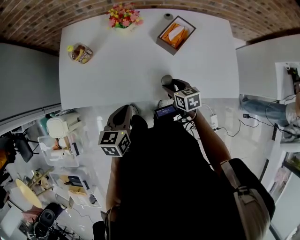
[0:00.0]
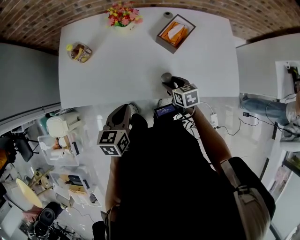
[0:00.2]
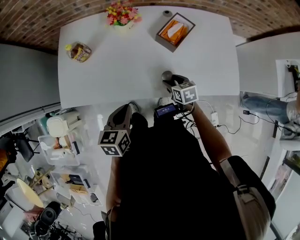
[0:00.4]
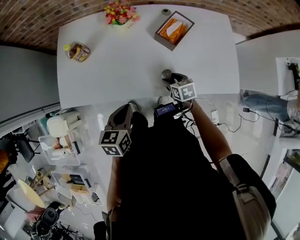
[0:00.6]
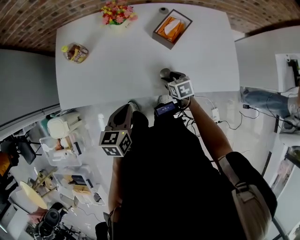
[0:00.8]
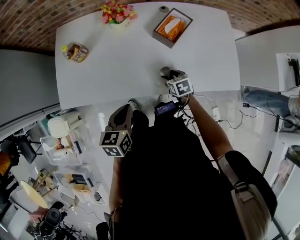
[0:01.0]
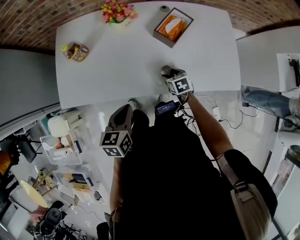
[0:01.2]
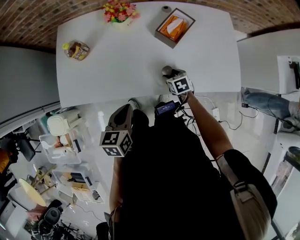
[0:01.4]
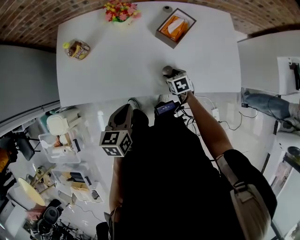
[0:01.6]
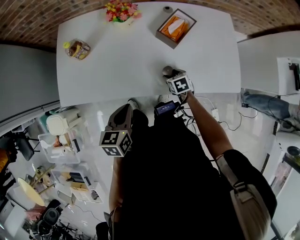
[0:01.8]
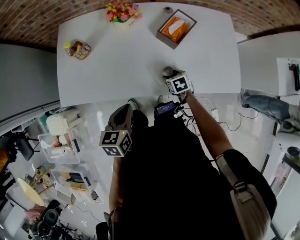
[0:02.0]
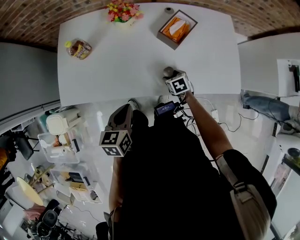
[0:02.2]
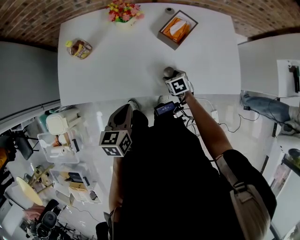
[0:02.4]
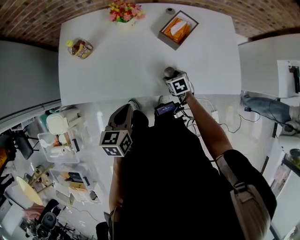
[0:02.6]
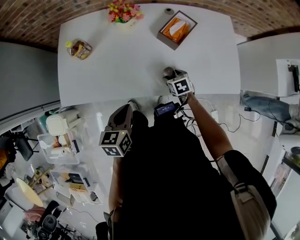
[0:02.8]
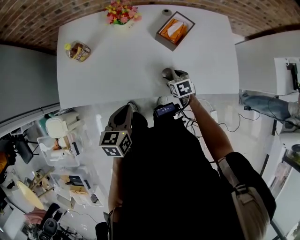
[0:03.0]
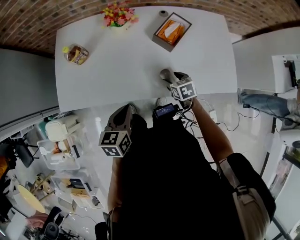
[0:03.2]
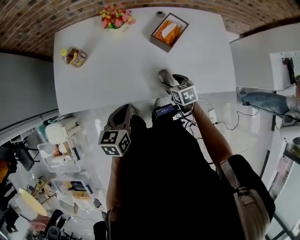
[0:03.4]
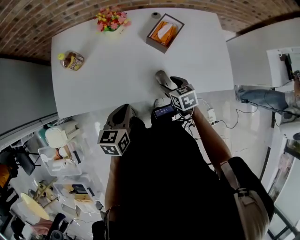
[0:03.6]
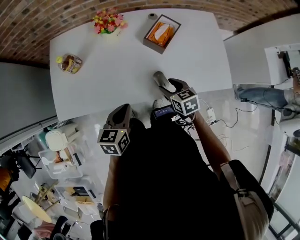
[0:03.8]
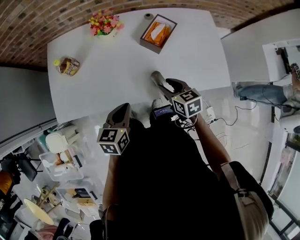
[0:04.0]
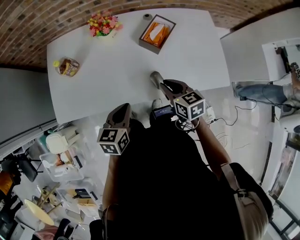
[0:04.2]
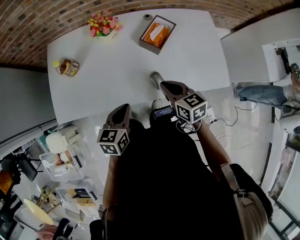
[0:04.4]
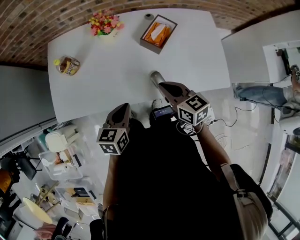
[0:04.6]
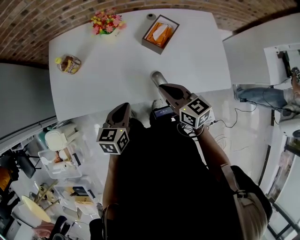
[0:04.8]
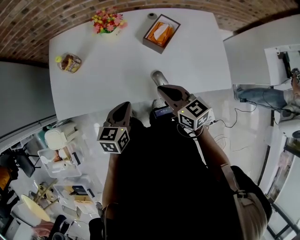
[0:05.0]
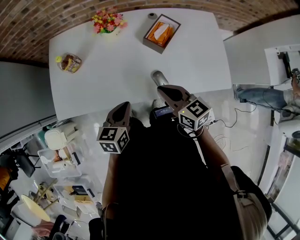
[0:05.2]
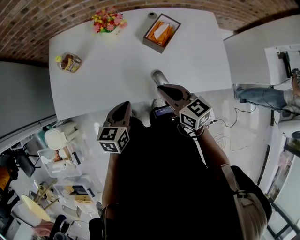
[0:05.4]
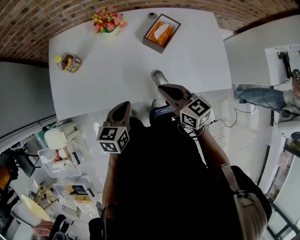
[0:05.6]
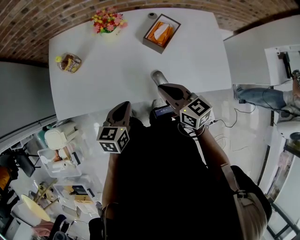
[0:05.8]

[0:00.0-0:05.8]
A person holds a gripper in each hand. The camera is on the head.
0:00.0 to 0:01.4: The right gripper shifts about 10 cm downward.
0:01.4 to 0:02.8: There are only small adjustments of the grippers.
0:02.8 to 0:04.4: The right gripper travels upward by approximately 20 cm, rotates roughly 30 degrees, and closes up; the left gripper shifts by about 5 cm.
0:04.4 to 0:05.8: The grippers stay close to where they were, moving slightly.

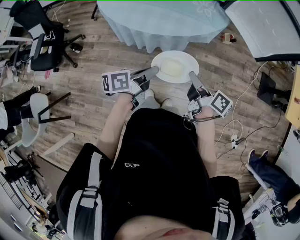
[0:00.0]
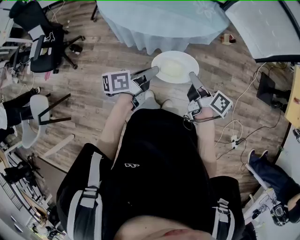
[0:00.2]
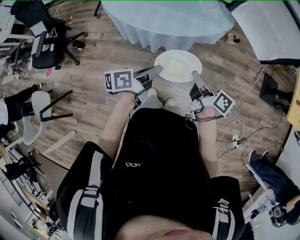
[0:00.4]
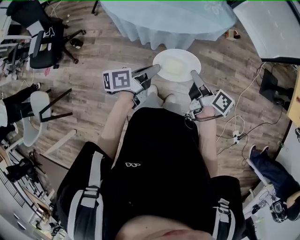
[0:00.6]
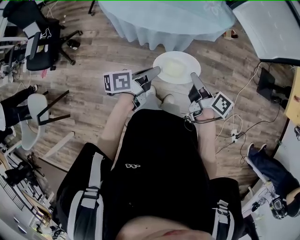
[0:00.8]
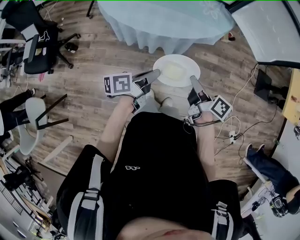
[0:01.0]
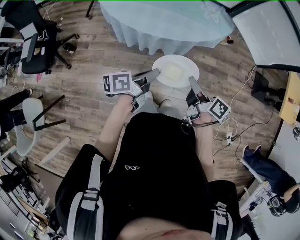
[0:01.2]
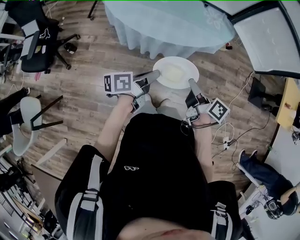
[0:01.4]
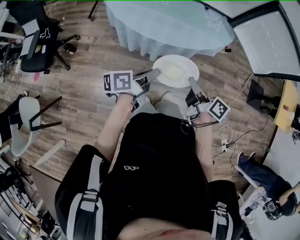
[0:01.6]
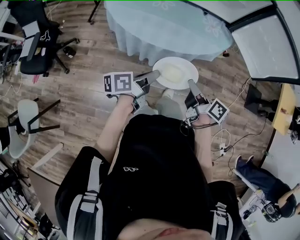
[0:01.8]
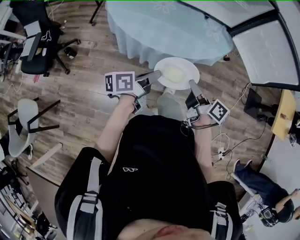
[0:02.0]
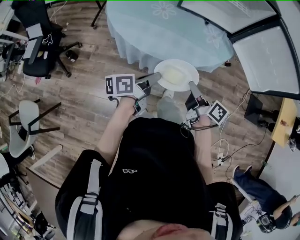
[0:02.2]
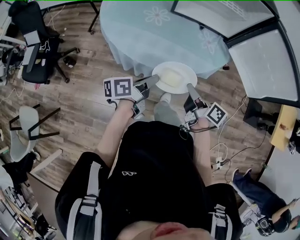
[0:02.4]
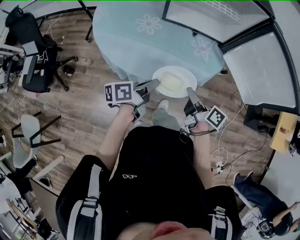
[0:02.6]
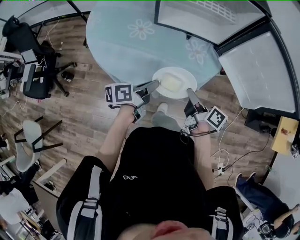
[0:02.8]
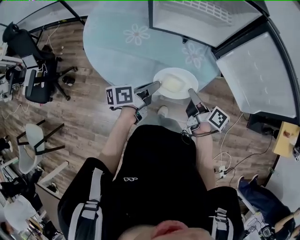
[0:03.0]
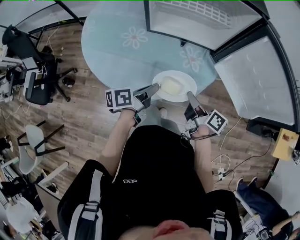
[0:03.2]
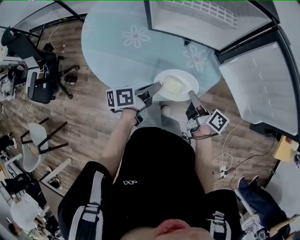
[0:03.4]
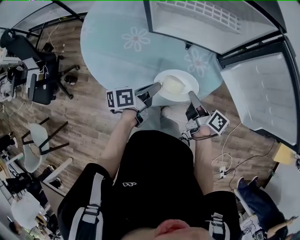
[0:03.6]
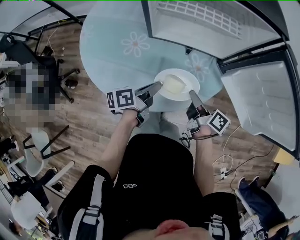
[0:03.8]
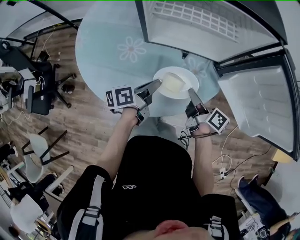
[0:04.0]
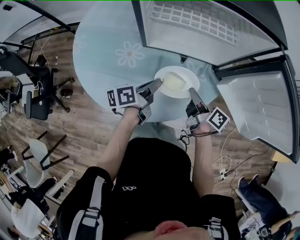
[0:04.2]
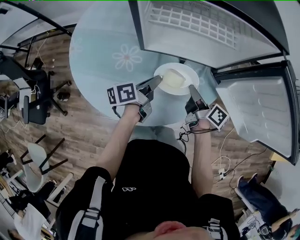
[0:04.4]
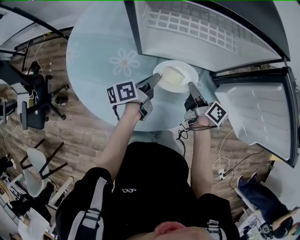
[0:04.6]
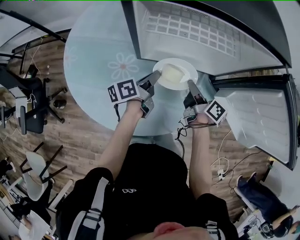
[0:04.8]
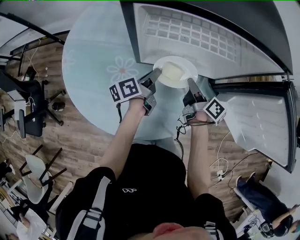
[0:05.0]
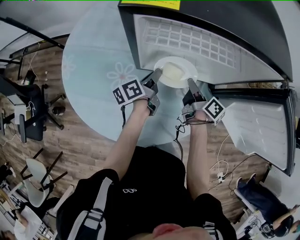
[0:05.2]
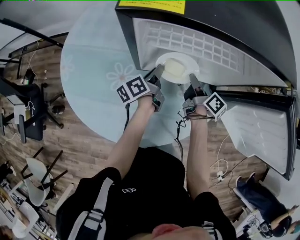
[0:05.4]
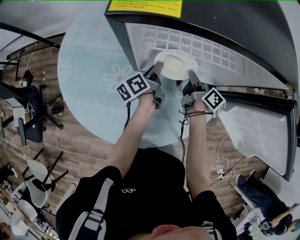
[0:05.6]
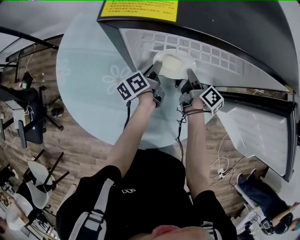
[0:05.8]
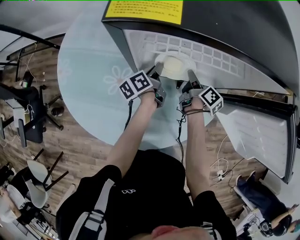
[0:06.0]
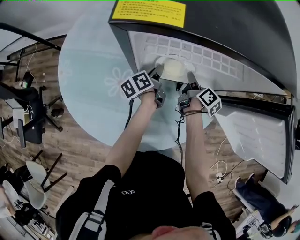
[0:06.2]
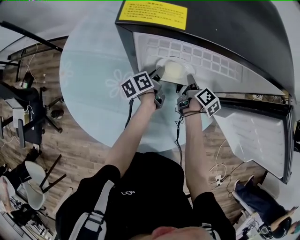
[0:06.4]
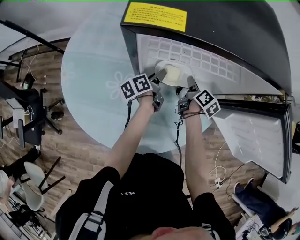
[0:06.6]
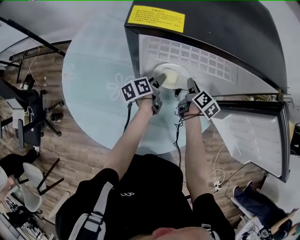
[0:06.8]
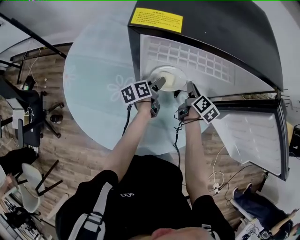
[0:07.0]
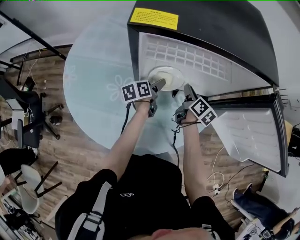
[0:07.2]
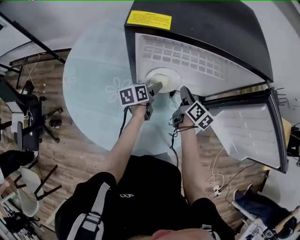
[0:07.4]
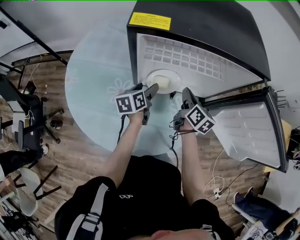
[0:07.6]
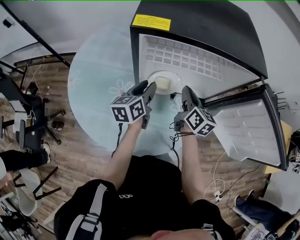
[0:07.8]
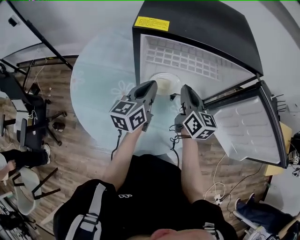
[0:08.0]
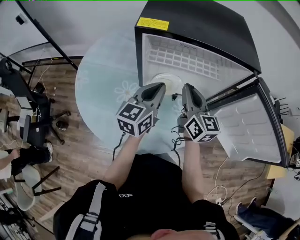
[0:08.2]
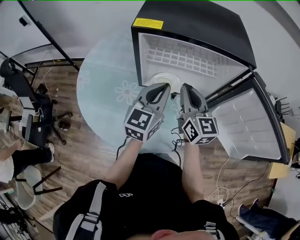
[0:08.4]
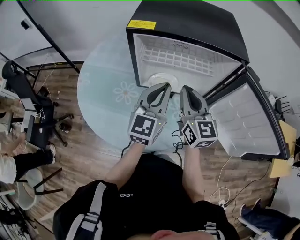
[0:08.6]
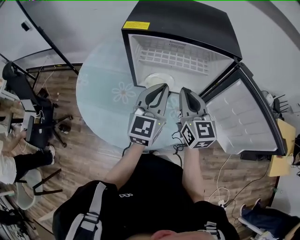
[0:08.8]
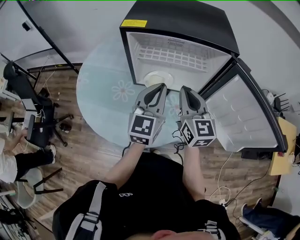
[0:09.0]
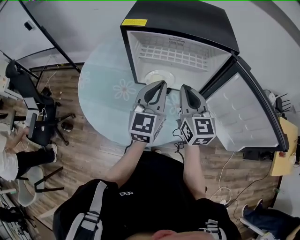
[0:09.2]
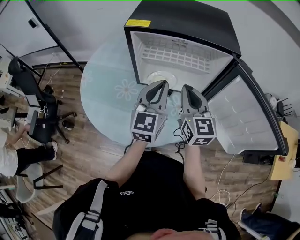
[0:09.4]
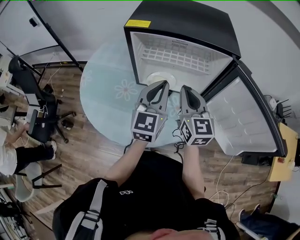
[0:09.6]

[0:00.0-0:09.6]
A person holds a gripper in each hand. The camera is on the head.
0:00.0 to 0:01.6: Both grippers move to the left, approximately 10 cm.
0:01.6 to 0:03.2: The grippers both shift forward and to the right by about 25 cm.
0:03.2 to 0:04.8: The grippers both shift forward by approximately 25 cm.
0:04.8 to 0:06.4: Both grippers travel together forward and downward, some 15 cm. The right gripper swivels approximately 20 degrees.
0:06.4 to 0:08.0: The two grippers go roughly 25 cm upward and backward. The left gripper rotates around the line of its fingers by approximately 40 degrees, clockwise from behind, and opens, then closes again. Meanwhile the right gripper twists approximately 40 degrees counterclockwise, seen from behind.
0:08.0 to 0:09.6: The left gripper heads upward, to the right and backward, covering approximately 15 cm, and swivels about 30 degrees, while the right gripper travels upward and backward by approximately 10 cm, and swivels some 20 degrees.

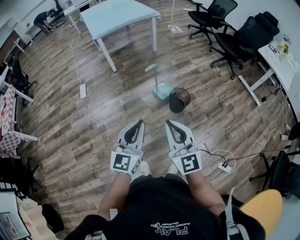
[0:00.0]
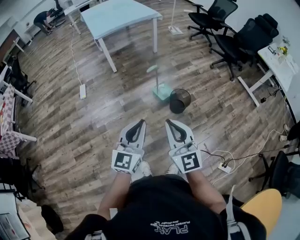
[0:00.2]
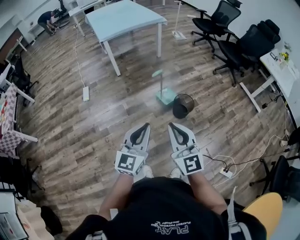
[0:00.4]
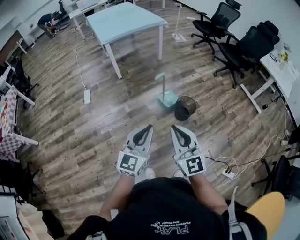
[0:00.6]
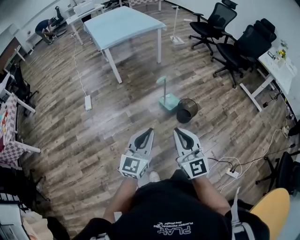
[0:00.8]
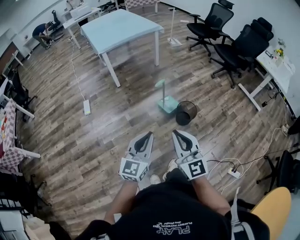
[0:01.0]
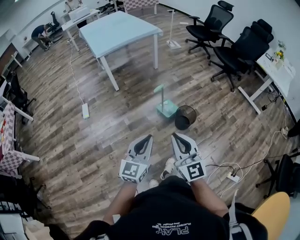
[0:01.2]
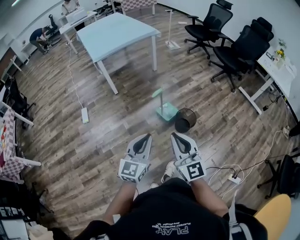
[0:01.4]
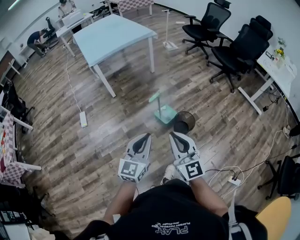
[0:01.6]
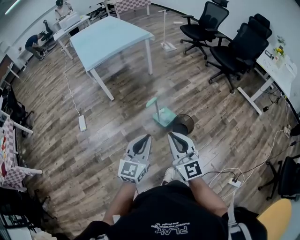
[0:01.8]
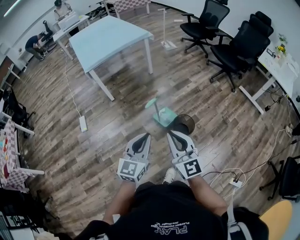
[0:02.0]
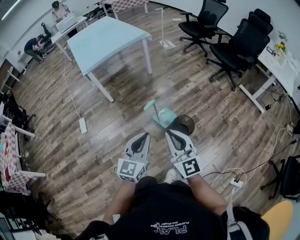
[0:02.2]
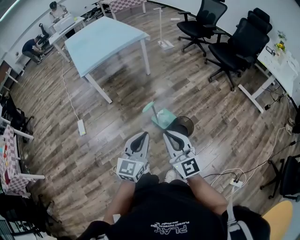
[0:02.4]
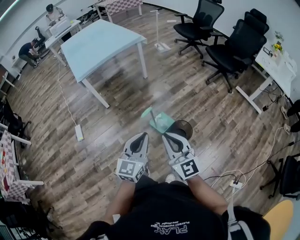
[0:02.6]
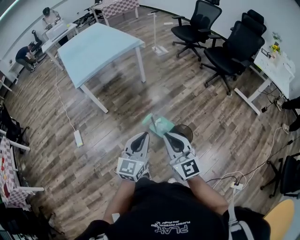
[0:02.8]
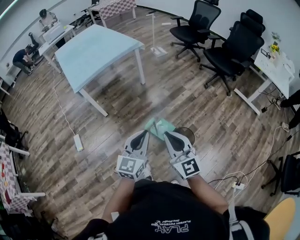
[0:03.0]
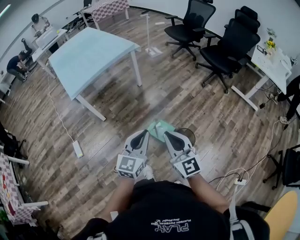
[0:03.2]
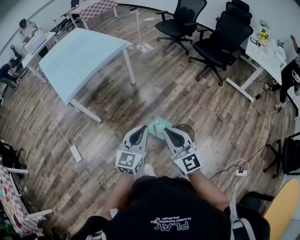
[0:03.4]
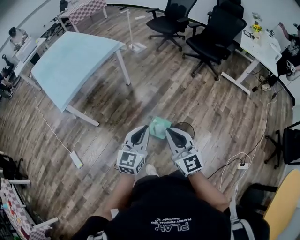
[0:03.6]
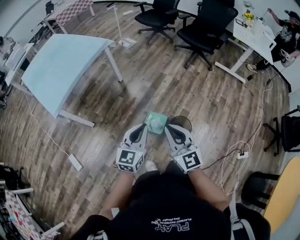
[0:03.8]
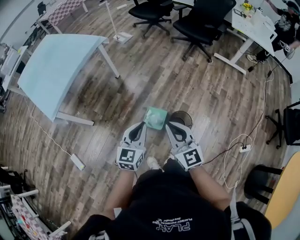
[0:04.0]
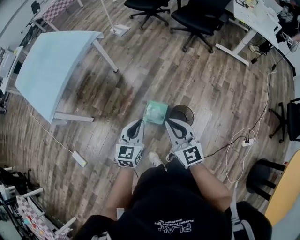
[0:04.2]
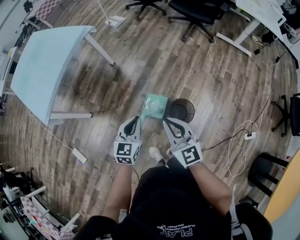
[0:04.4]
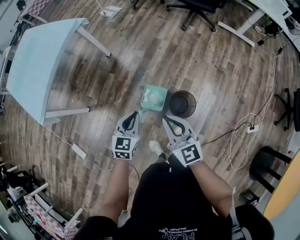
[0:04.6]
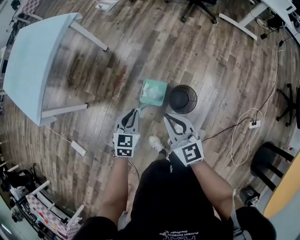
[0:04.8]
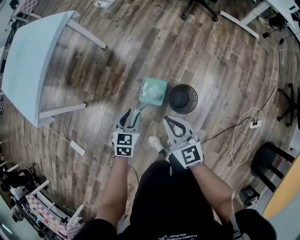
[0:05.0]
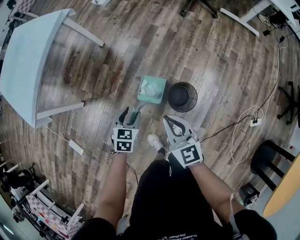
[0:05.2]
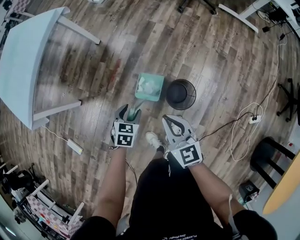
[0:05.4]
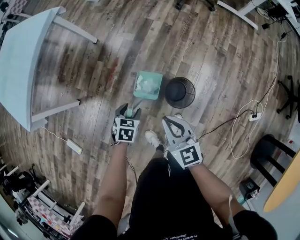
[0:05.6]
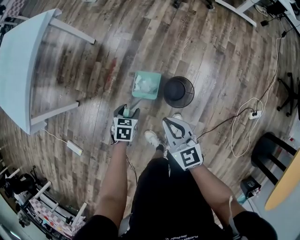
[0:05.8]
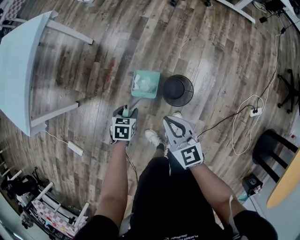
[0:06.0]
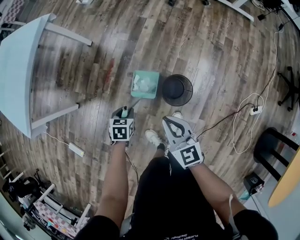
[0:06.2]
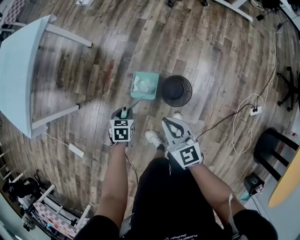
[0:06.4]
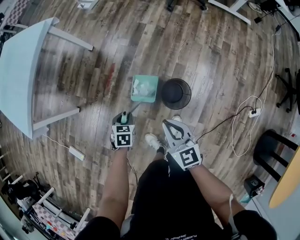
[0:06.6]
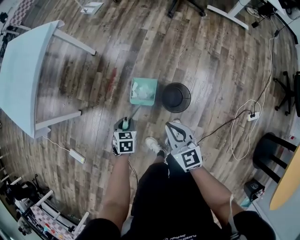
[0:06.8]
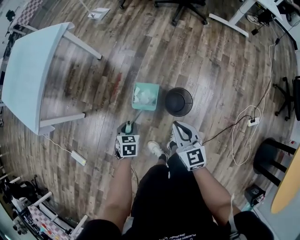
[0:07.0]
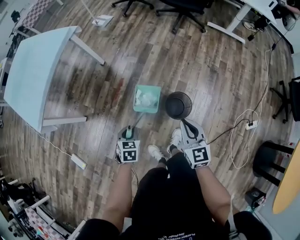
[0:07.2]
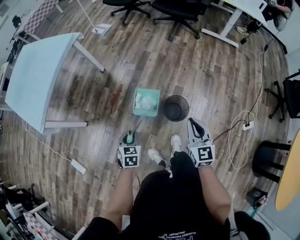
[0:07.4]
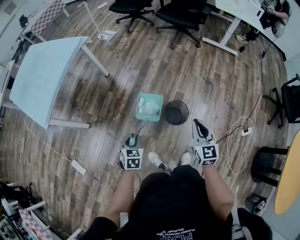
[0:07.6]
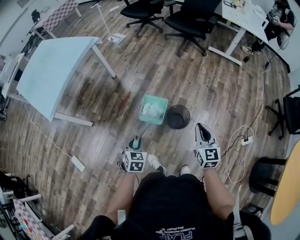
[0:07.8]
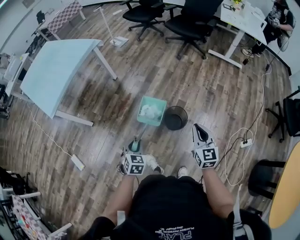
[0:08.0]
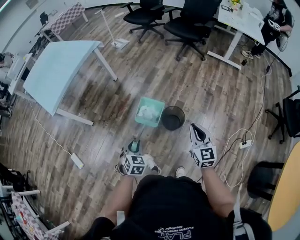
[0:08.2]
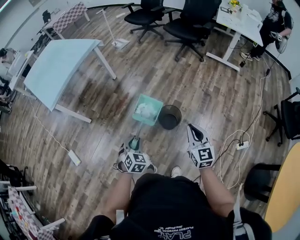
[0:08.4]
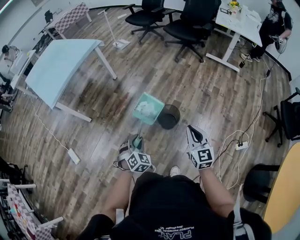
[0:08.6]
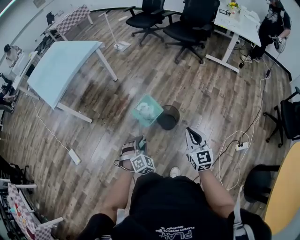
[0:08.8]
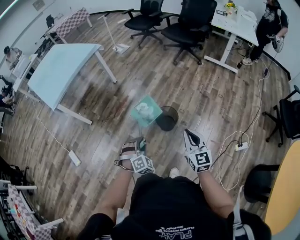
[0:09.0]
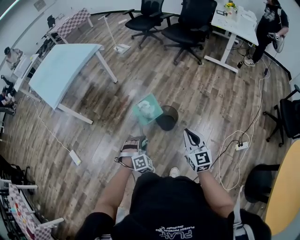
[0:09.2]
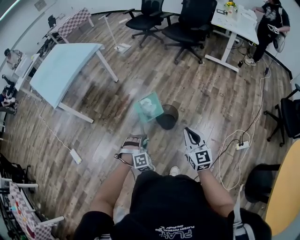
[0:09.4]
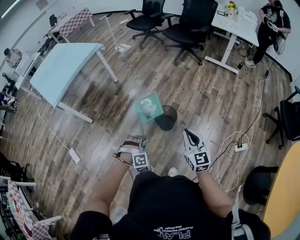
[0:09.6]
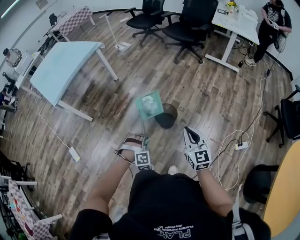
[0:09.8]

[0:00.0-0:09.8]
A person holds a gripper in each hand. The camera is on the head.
0:00.0 to 0:01.4: The two grippers go about 15 cm forward and to the left.
0:01.4 to 0:02.8: Both grippers travel together forward, roughly 25 cm.
0:02.8 to 0:04.2: Both grippers move forward and downward, some 20 cm. The right gripper swivels about 20 degrees; the left gripper swivels about 20 degrees.
0:04.2 to 0:05.6: The left gripper heads downward, covering approximately 30 cm, tips its fingers downward by some 40 degrees, and opens its fingers. The right gripper goes approximately 20 cm downward.
0:05.6 to 0:07.0: The right gripper shifts by some 5 cm, while the left gripper goes roughly 5 cm backward, and closes.
0:07.0 to 0:08.4: The left gripper is displaced backward, upward and to the right by some 30 cm, and swivels some 30 degrees; the right gripper is displaced backward, to the right and upward by roughly 25 cm.
0:08.4 to 0:09.8: The left gripper goes about 15 cm to the right and backward, and twists some 60 degrees clockwise, seen from behind. The right gripper goes approximately 10 cm backward.
